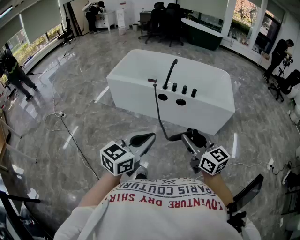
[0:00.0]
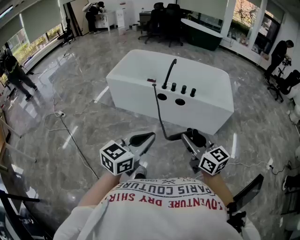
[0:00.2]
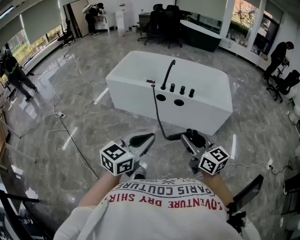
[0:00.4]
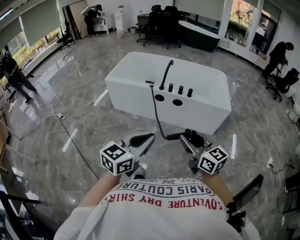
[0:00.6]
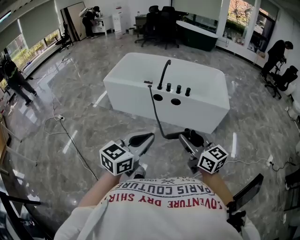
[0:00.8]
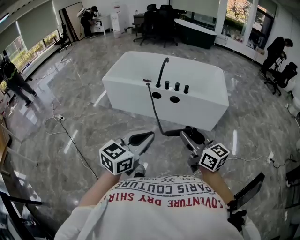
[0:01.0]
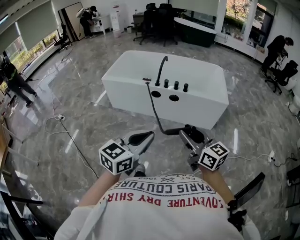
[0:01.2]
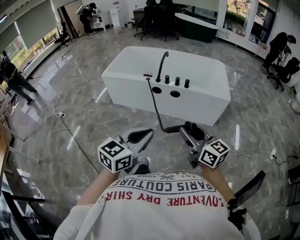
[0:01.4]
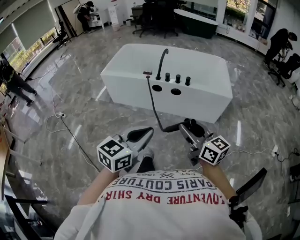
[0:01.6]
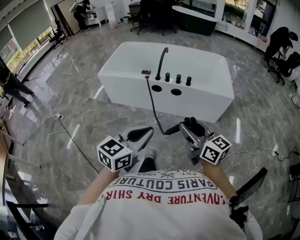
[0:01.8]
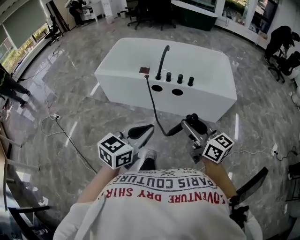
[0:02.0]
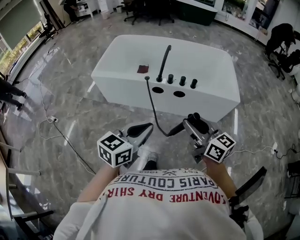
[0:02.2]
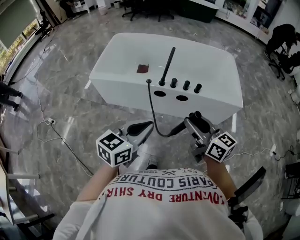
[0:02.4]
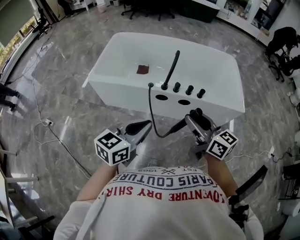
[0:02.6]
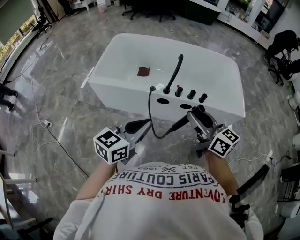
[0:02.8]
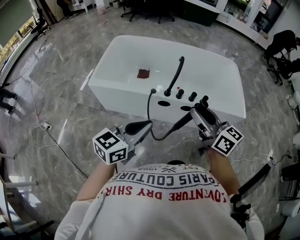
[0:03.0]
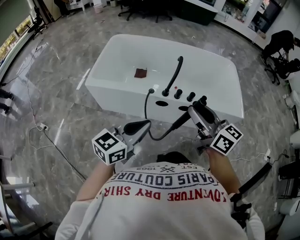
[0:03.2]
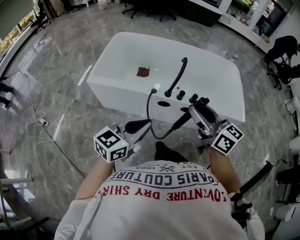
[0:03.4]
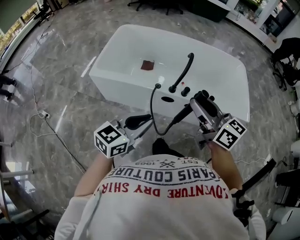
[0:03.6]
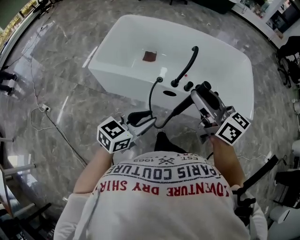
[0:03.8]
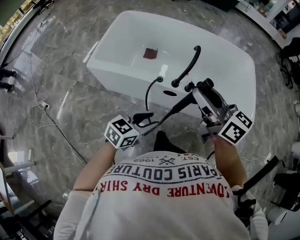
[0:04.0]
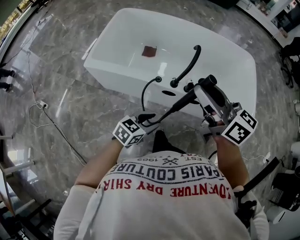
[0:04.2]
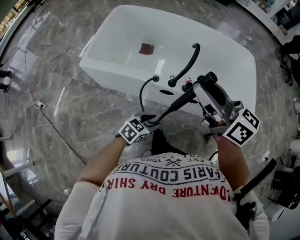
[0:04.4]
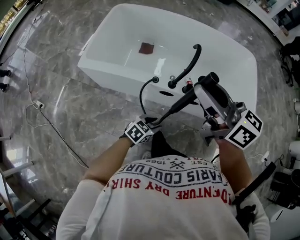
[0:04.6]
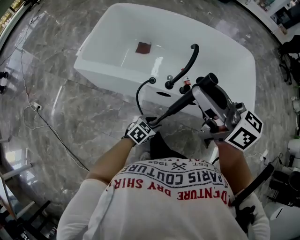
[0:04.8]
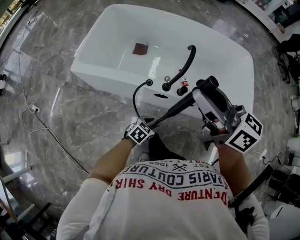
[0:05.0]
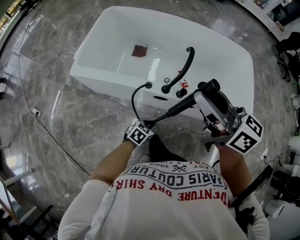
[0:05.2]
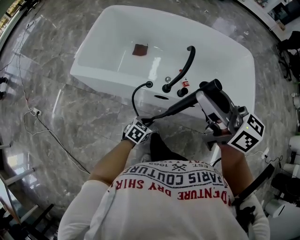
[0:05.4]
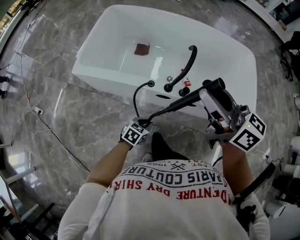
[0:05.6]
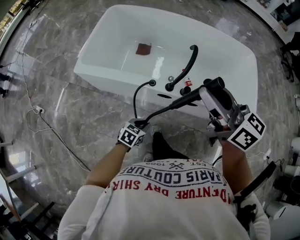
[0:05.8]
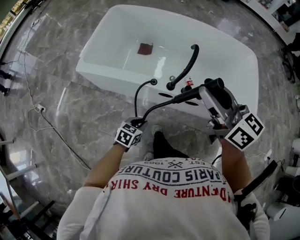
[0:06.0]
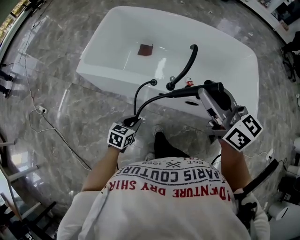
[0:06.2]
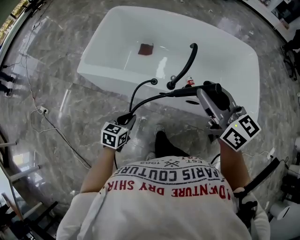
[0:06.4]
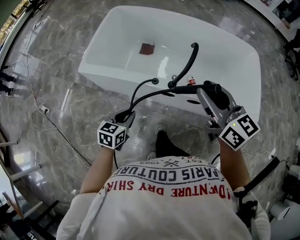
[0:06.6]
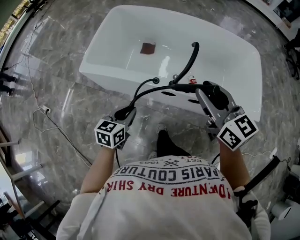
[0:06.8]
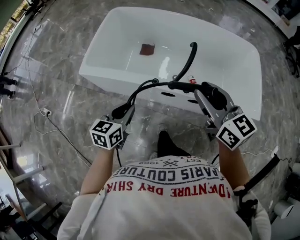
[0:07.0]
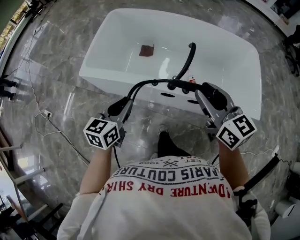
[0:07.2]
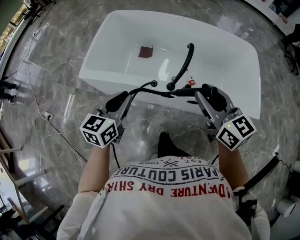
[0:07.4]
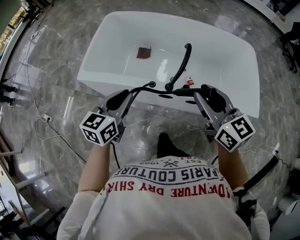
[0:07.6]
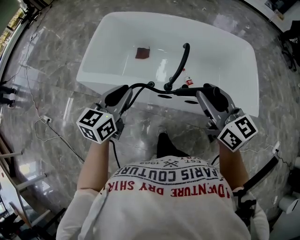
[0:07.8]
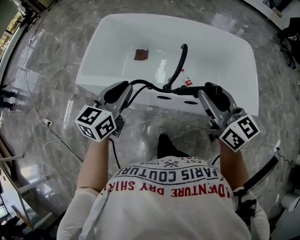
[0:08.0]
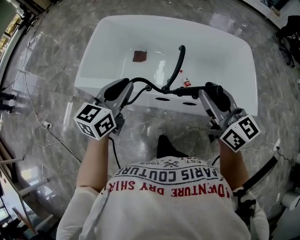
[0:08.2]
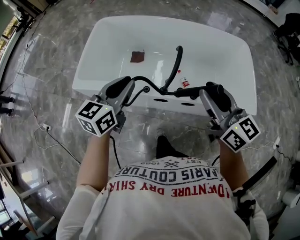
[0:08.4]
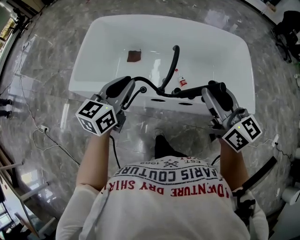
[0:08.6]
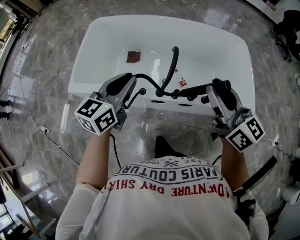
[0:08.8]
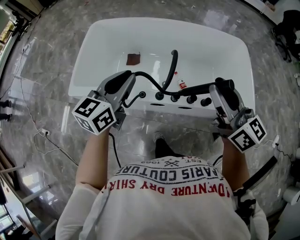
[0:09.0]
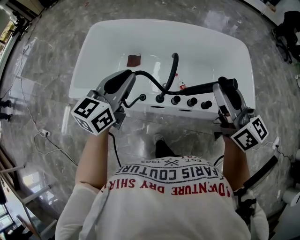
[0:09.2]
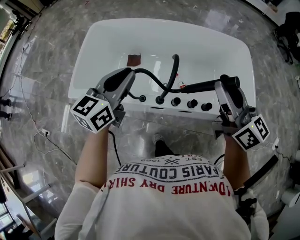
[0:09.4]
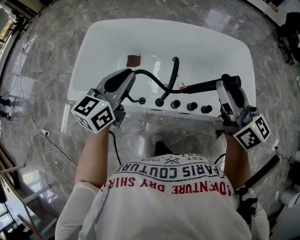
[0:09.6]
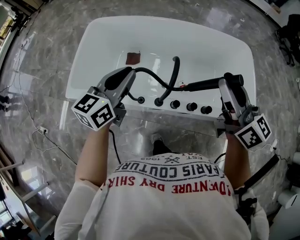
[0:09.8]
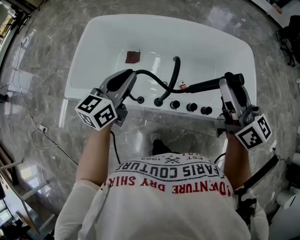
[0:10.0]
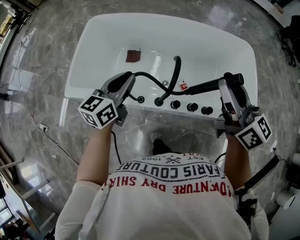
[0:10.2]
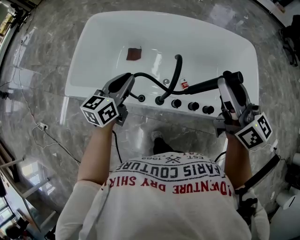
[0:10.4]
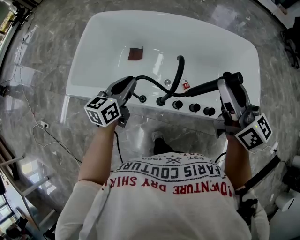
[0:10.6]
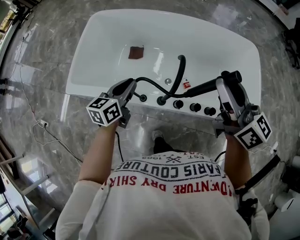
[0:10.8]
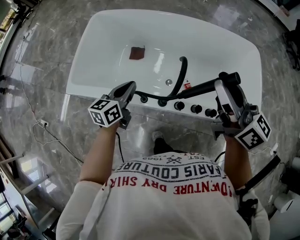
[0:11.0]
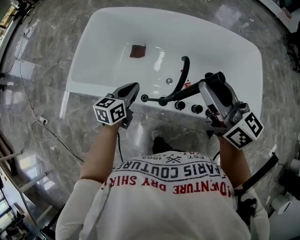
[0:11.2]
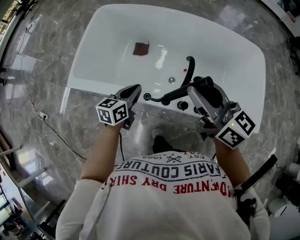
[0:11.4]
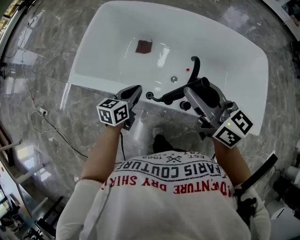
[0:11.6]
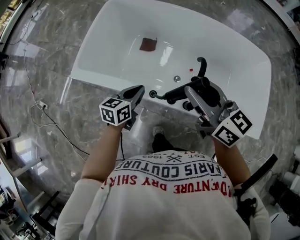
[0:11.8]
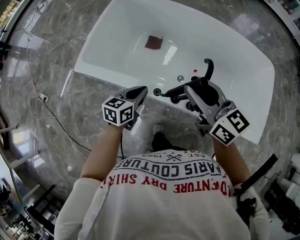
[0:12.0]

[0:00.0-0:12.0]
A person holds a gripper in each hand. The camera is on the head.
0:00.0 to 0:01.6: The left gripper goes approximately 5 cm to the right.
0:01.6 to 0:03.0: Both grippers move forward and to the left, some 35 cm.
0:03.0 to 0:04.4: The left gripper travels downward by roughly 25 cm, turns by roughly 30 degrees, and opens up; the right gripper moves forward and to the left, some 15 cm.
0:04.4 to 0:06.0: The right gripper changes place by some 5 cm. The left gripper goes roughly 10 cm downward and to the left, and closes.
0:06.0 to 0:07.6: The right gripper shifts by about 5 cm; the left gripper heads upward and forward, covering roughly 25 cm, and swivels about 30 degrees.
0:07.6 to 0:09.0: The left gripper travels forward, upward and to the right by about 15 cm, while the right gripper heads to the right, upward and forward, covering about 10 cm.
0:09.0 to 0:10.4: The right gripper is displaced forward by some 10 cm. The left gripper is displaced downward and forward by some 15 cm.
0:10.4 to 0:12.0: The right gripper travels to the left and downward by some 20 cm, and swivels about 30 degrees; the left gripper travels downward and backward by some 15 cm.

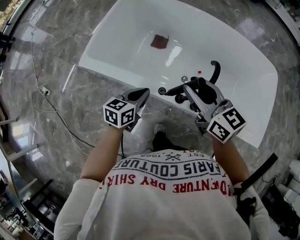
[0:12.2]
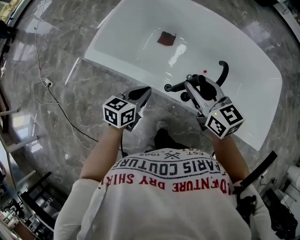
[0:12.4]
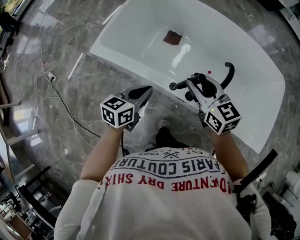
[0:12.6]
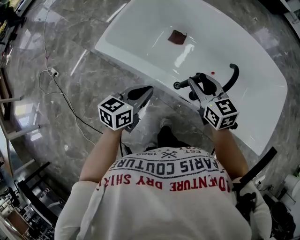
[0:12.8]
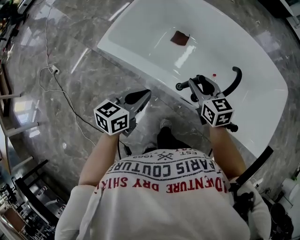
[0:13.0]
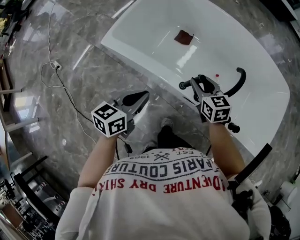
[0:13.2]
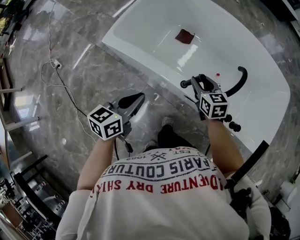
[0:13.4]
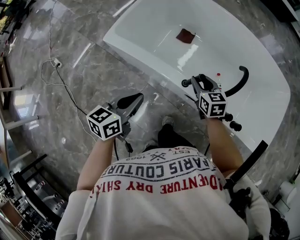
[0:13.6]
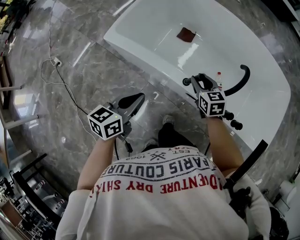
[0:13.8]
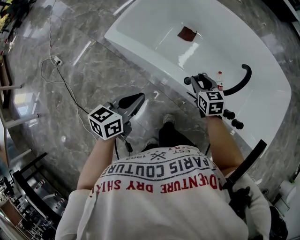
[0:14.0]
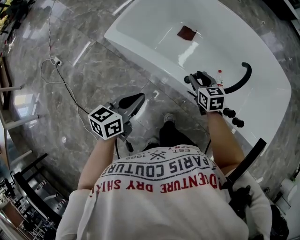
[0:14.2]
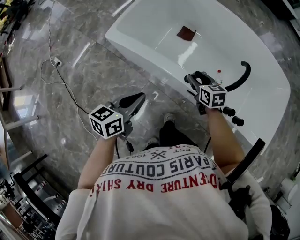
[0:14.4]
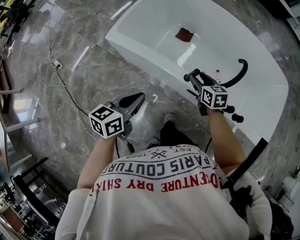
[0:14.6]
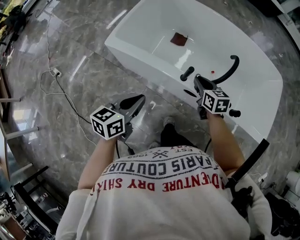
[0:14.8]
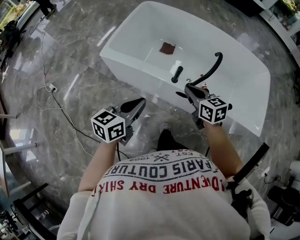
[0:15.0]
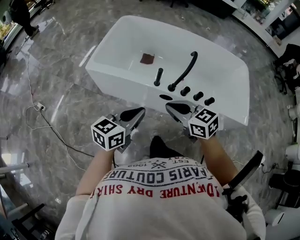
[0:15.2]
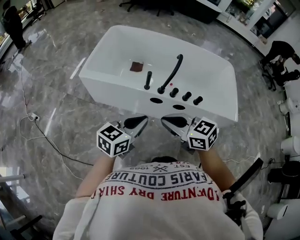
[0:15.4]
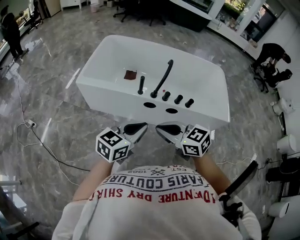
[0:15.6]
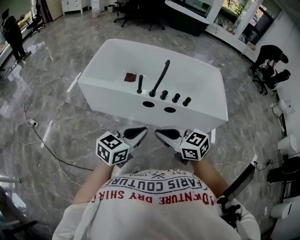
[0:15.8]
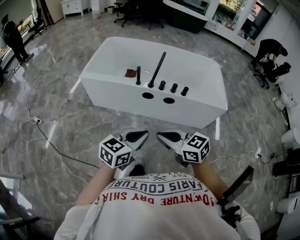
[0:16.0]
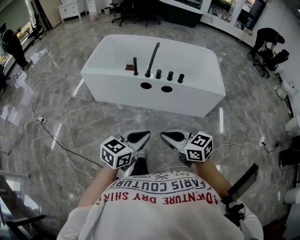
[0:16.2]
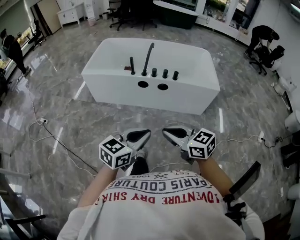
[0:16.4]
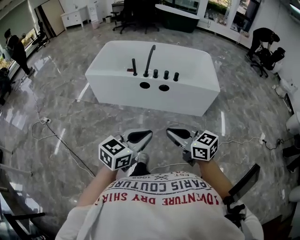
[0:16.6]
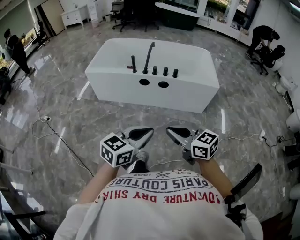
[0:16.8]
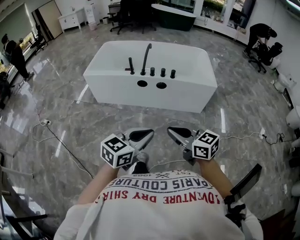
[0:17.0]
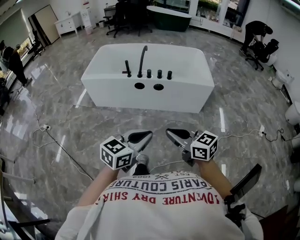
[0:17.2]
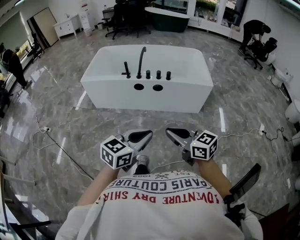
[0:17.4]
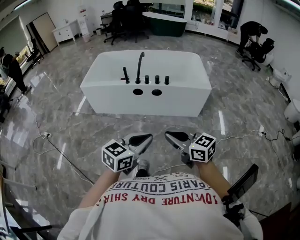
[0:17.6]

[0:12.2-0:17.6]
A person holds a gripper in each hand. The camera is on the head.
0:12.2 to 0:13.6: The left gripper heads to the left, backward and upward, covering about 15 cm. The right gripper heads downward, covering approximately 20 cm, and turns by approximately 20 degrees.
0:13.6 to 0:15.0: The left gripper heads backward and upward, covering approximately 10 cm, while the right gripper goes approximately 15 cm backward and upward, and closes up.
0:15.0 to 0:16.2: Both grippers are carried backward, about 50 cm. The left gripper swivels approximately 30 degrees.
0:16.2 to 0:17.6: The two grippers go some 15 cm backward, to the right and upward.

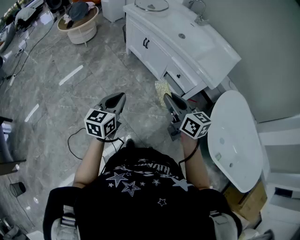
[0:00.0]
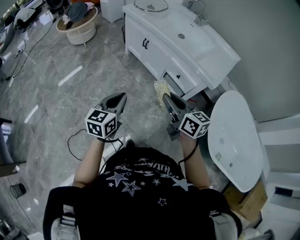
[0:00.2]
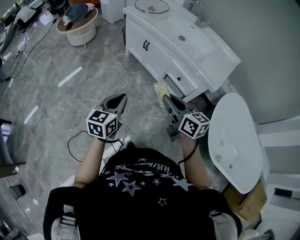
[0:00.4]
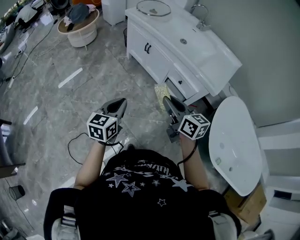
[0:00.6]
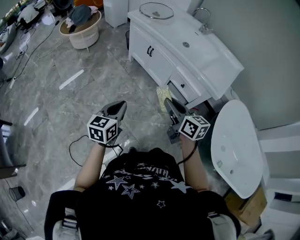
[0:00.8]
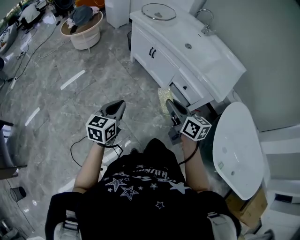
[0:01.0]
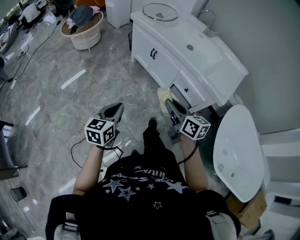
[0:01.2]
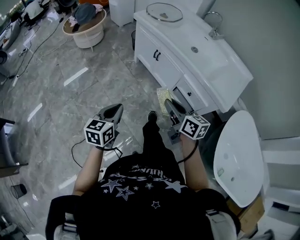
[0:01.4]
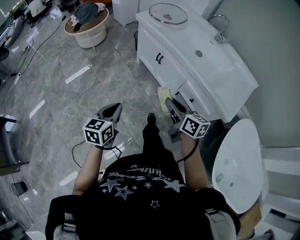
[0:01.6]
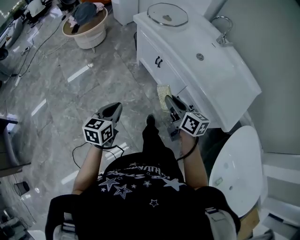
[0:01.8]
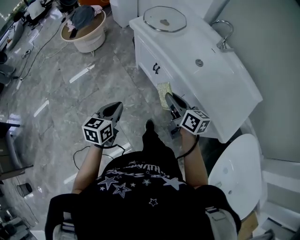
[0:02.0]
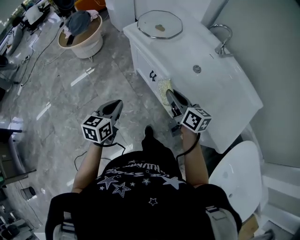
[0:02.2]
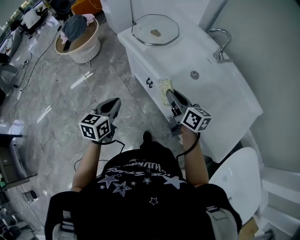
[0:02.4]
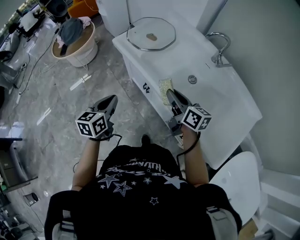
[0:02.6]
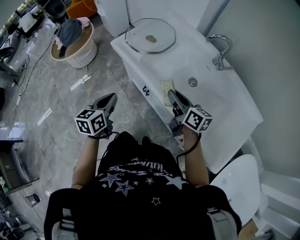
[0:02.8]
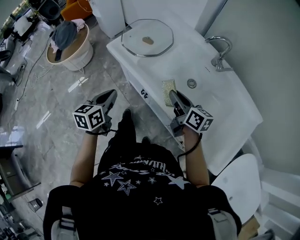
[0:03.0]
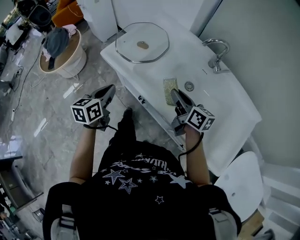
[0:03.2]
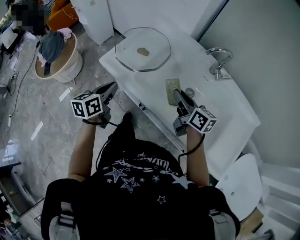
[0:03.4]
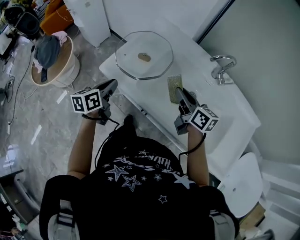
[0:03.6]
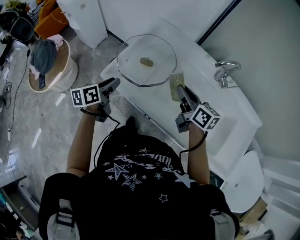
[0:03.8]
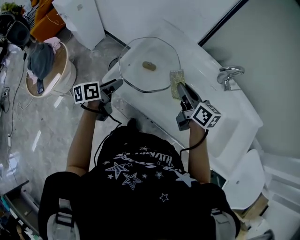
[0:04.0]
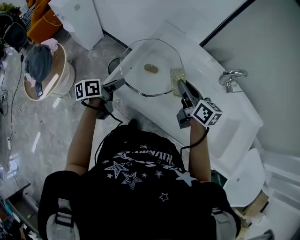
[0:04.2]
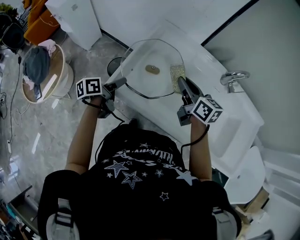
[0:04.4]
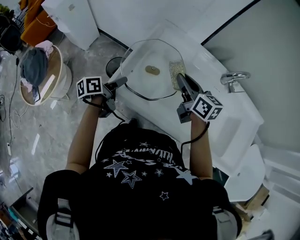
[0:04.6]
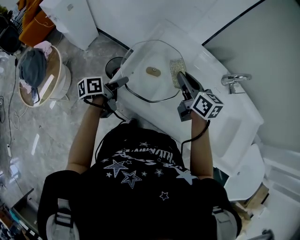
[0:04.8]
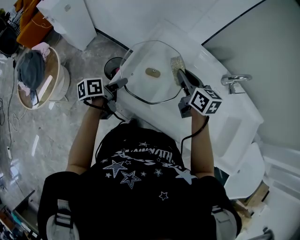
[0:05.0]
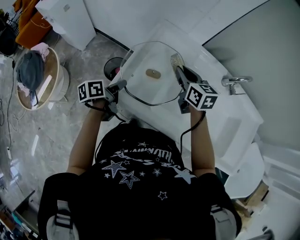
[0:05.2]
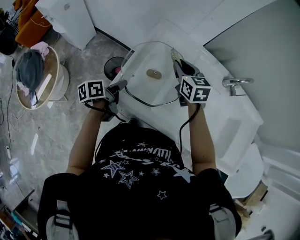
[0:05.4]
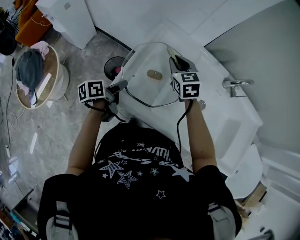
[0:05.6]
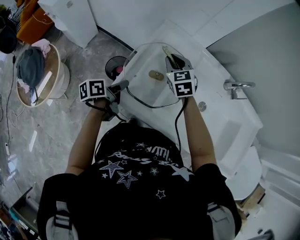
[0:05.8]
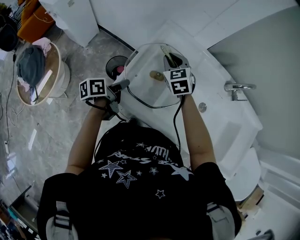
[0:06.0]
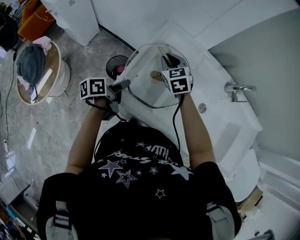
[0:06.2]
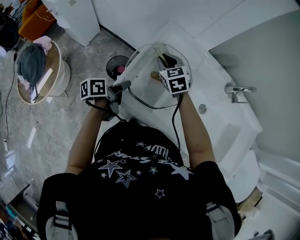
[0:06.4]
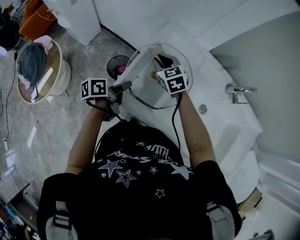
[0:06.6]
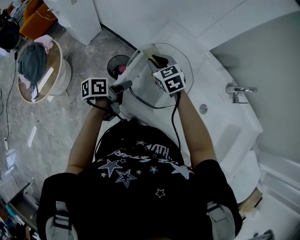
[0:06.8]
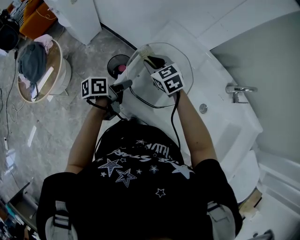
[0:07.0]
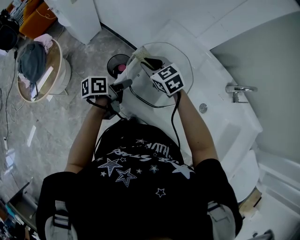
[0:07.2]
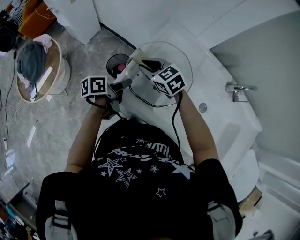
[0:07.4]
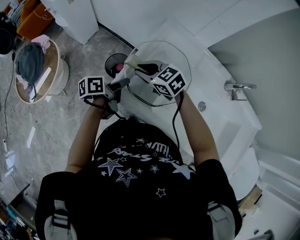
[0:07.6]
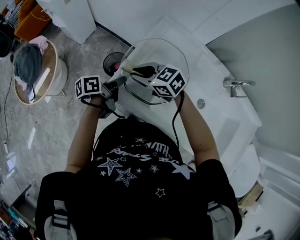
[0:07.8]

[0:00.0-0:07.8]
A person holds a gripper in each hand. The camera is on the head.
0:00.0 to 0:01.6: The right gripper is displaced forward by roughly 20 cm; the left gripper goes about 15 cm forward and to the left.
0:01.6 to 0:03.2: Both grippers are carried forward, about 50 cm.
0:03.2 to 0:04.6: Both grippers travel together forward and to the left, about 25 cm. The left gripper changes its angle by about 40 degrees, and opens up.
0:04.6 to 0:06.2: The left gripper closes its fingers; the right gripper travels to the left, forward and downward by roughly 15 cm, and rolls counterclockwise, seen from behind, by roughly 40 degrees.
0:06.2 to 0:07.8: The right gripper shifts by about 15 cm, and swivels some 50 degrees.
